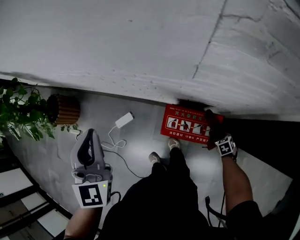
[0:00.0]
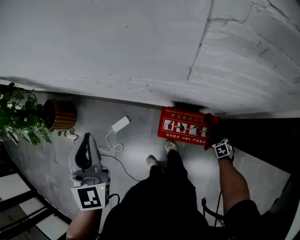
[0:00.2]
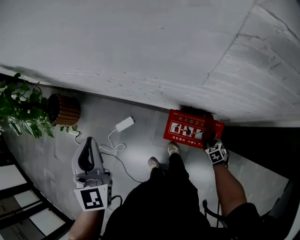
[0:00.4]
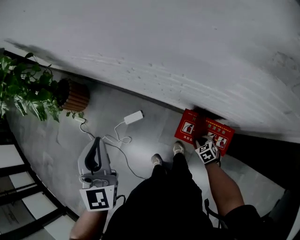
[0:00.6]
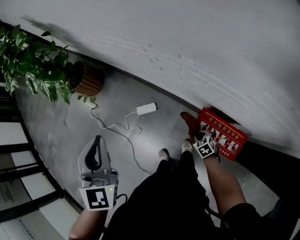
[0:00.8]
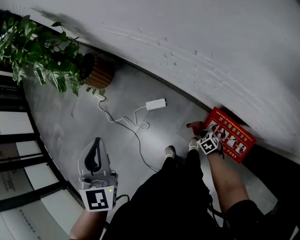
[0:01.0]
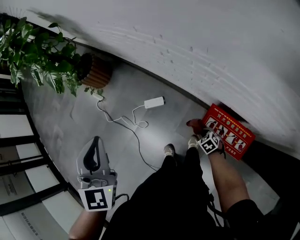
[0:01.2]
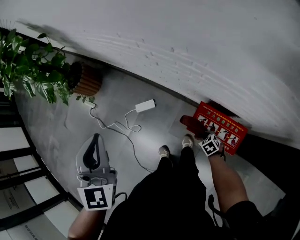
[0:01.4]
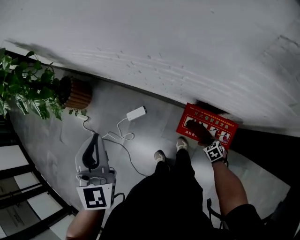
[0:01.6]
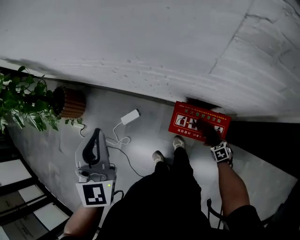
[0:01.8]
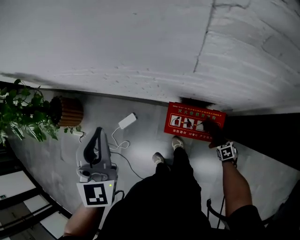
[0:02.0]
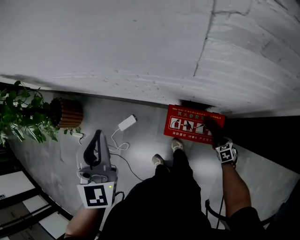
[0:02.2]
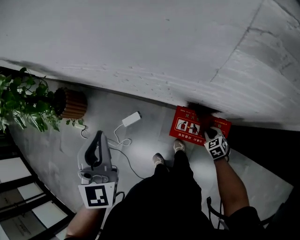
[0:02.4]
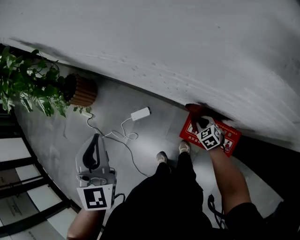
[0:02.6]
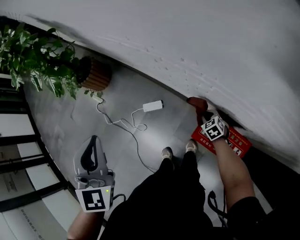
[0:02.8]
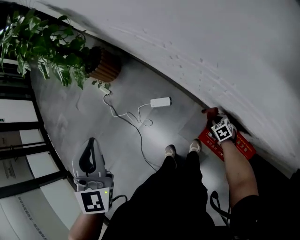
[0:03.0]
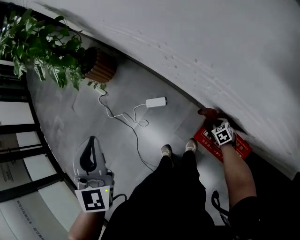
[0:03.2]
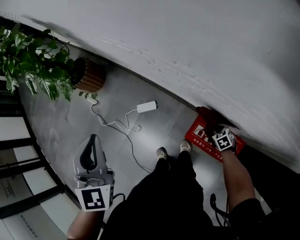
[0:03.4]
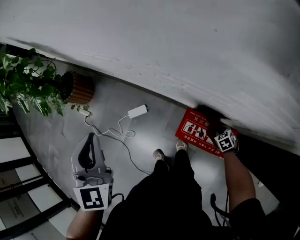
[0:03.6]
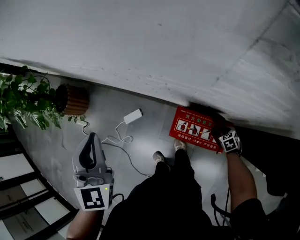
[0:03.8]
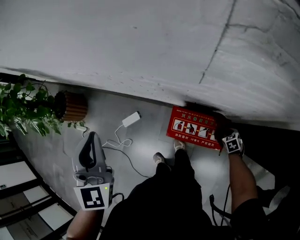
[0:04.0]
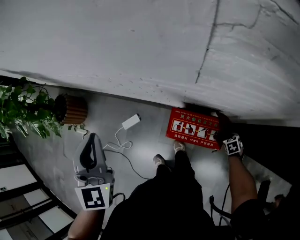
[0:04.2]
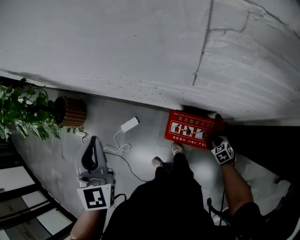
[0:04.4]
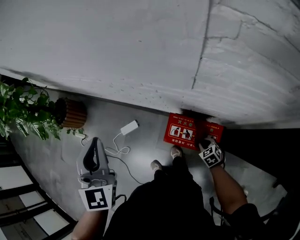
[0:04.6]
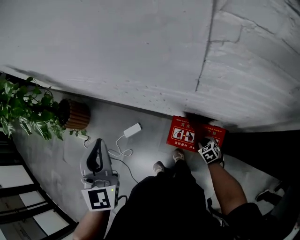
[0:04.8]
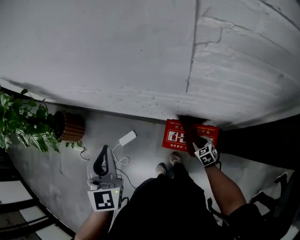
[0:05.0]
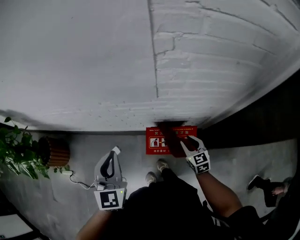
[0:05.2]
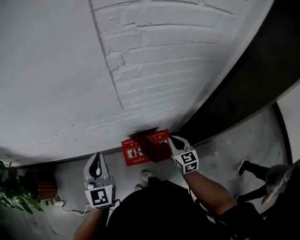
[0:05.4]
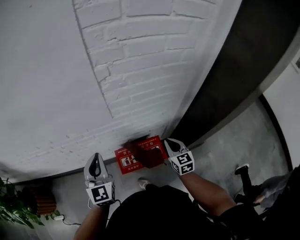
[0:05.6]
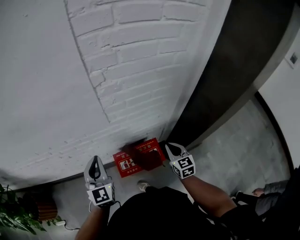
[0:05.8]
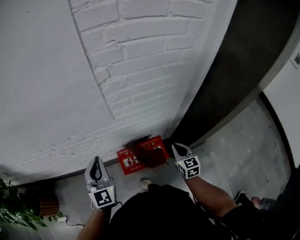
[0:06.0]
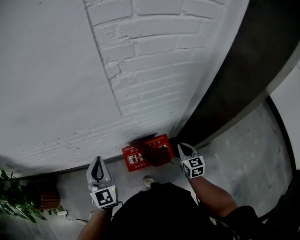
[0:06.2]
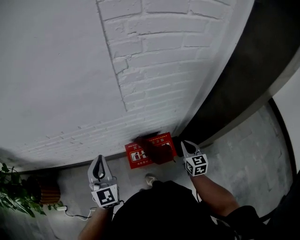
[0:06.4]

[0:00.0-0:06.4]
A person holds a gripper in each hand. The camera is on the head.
0:01.6 to 0:03.2: The right gripper moves approximately 10 cm upward and comes back. The left gripper changes place by some 10 cm, and rotates roughly 20 degrees.
0:03.2 to 0:04.8: The right gripper rotates some 20 degrees, while the left gripper shifts by approximately 15 cm, and changes its angle by some 30 degrees.
0:04.8 to 0:06.4: The right gripper travels upward by roughly 25 cm, and angles its fingers upward, by approximately 40 degrees; the left gripper changes its angle by approximately 30 degrees.

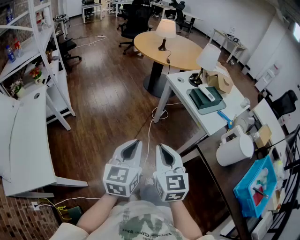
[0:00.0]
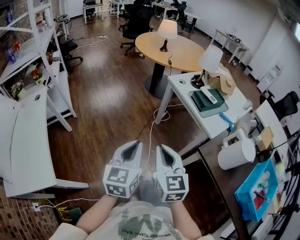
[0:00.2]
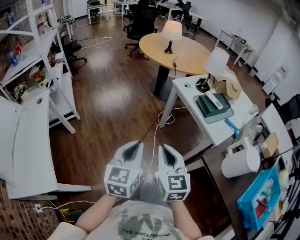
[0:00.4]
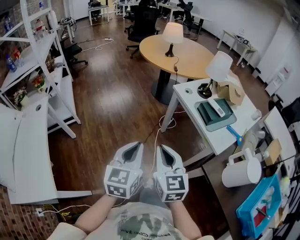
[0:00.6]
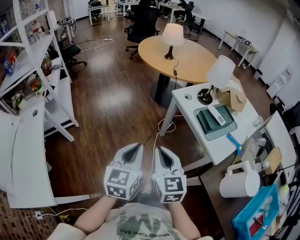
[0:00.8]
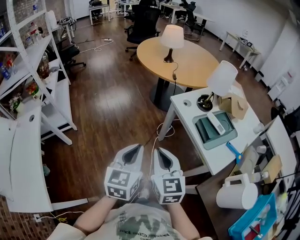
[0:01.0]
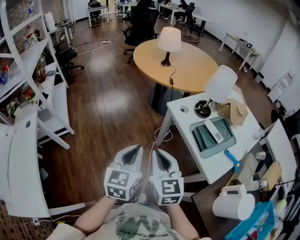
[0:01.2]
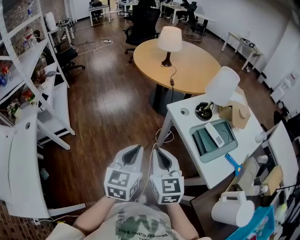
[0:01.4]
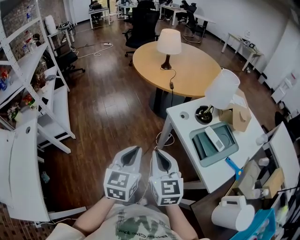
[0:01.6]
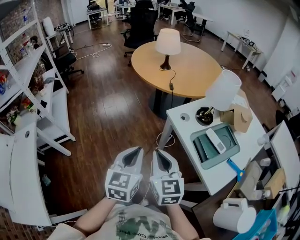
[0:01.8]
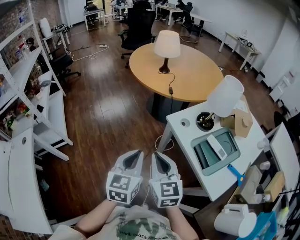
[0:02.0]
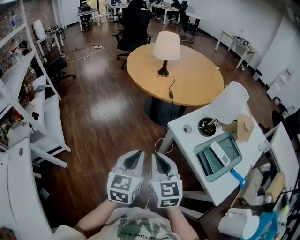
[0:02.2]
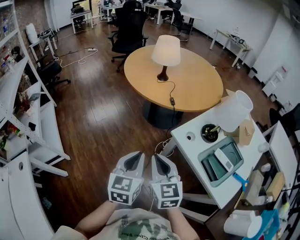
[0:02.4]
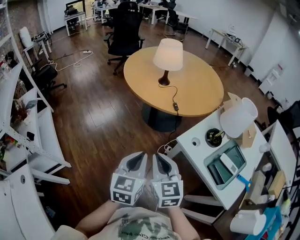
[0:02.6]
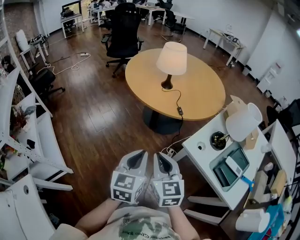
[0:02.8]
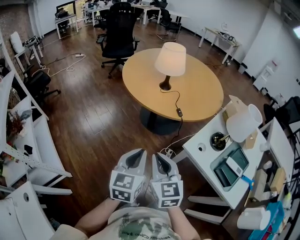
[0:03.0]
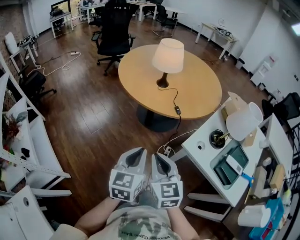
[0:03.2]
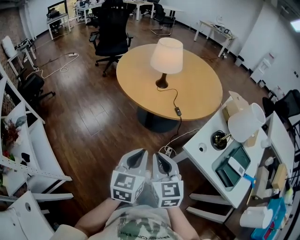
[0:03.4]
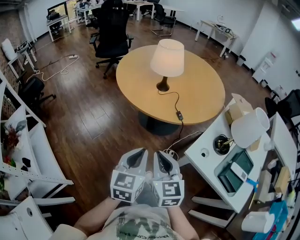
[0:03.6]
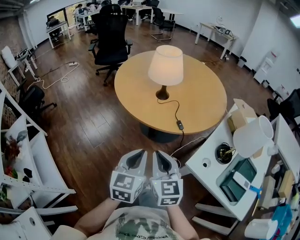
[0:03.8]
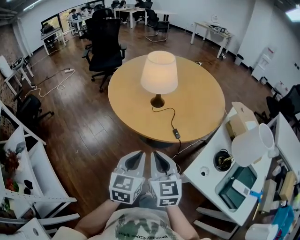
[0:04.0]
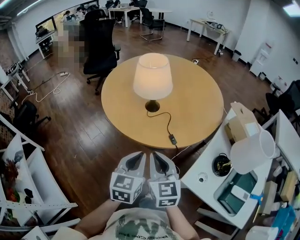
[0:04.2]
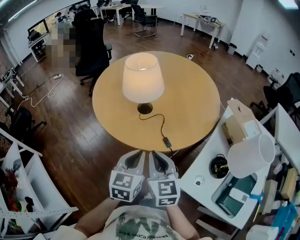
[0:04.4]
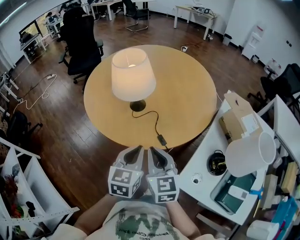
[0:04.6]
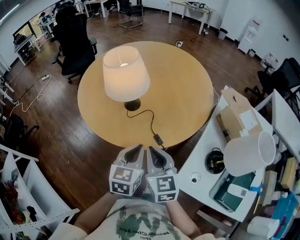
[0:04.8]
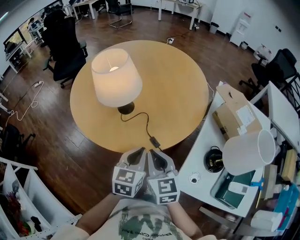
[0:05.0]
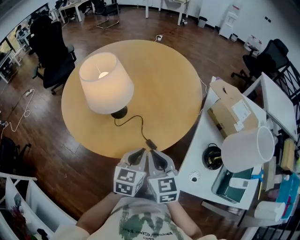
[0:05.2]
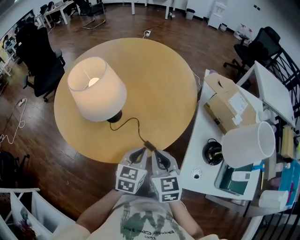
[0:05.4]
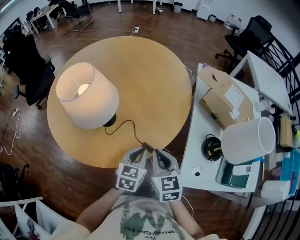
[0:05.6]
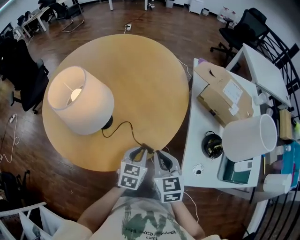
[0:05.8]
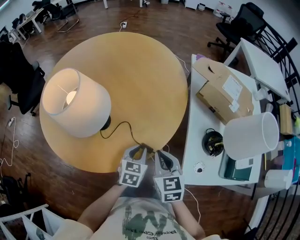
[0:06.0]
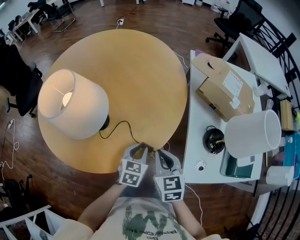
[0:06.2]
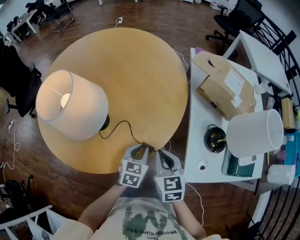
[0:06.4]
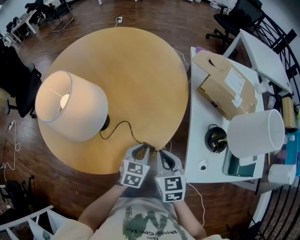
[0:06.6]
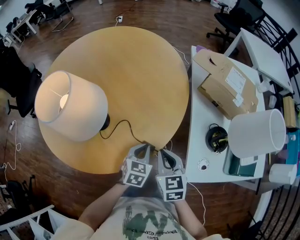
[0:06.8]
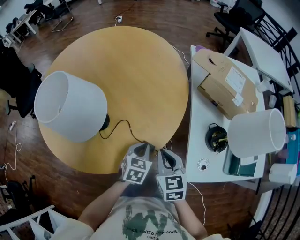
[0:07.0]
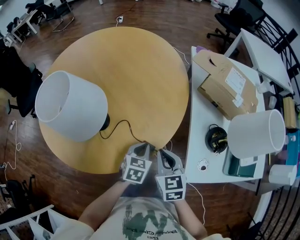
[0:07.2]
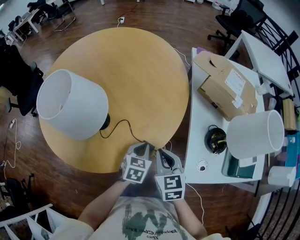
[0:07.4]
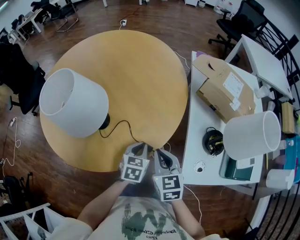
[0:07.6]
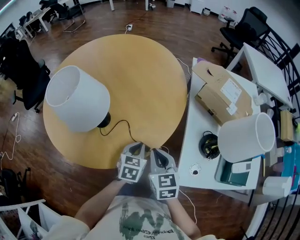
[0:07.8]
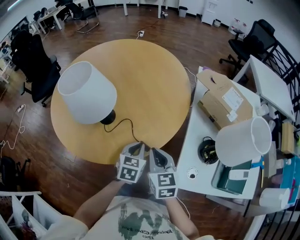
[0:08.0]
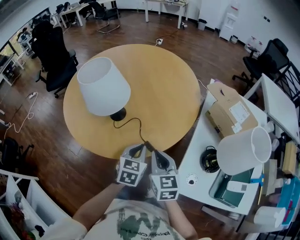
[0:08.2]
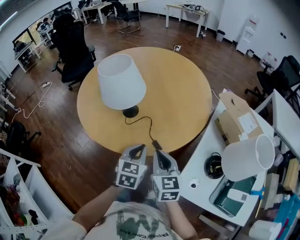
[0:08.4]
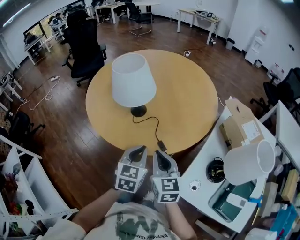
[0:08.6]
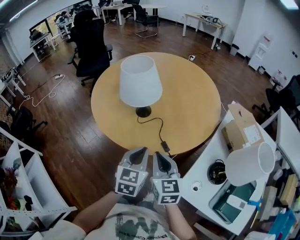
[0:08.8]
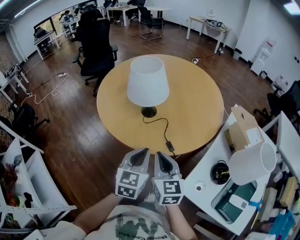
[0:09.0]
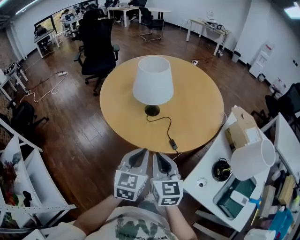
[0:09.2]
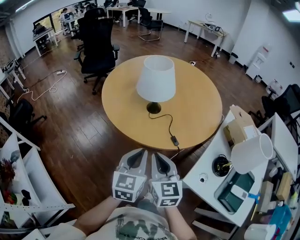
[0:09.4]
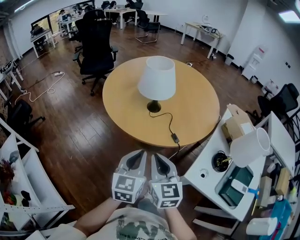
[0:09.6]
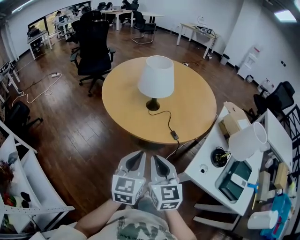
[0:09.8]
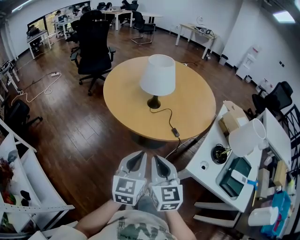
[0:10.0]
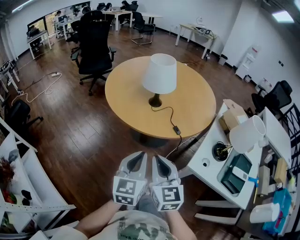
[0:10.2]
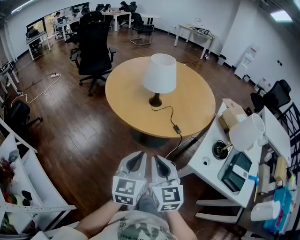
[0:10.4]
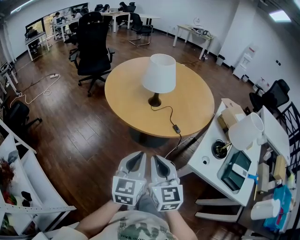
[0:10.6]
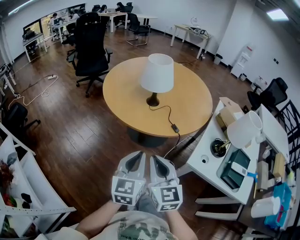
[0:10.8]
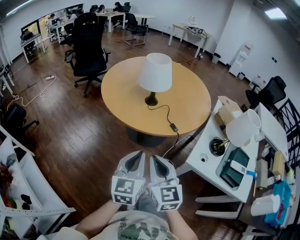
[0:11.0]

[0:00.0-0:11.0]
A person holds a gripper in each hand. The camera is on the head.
0:00.0 to 0:01.6: The two grippers go some 30 cm forward.
0:01.6 to 0:03.2: The two grippers go some 30 cm forward and to the left.
0:03.2 to 0:04.8: The grippers both shift forward by roughly 30 cm.
0:04.8 to 0:06.2: The right gripper travels downward by about 10 cm, and changes its angle by approximately 30 degrees, while the left gripper heads downward, covering approximately 15 cm, and swivels some 40 degrees.
0:06.2 to 0:07.8: The grippers move only a little.
0:07.8 to 0:09.4: The right gripper moves roughly 25 cm, and changes its angle by some 30 degrees. The left gripper shifts by about 30 cm, and changes its angle by roughly 40 degrees.
0:09.4 to 0:11.0: Both grippers move backward and to the left, about 15 cm.

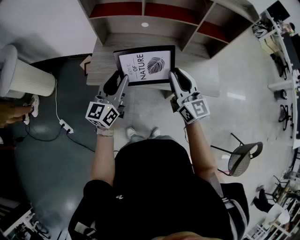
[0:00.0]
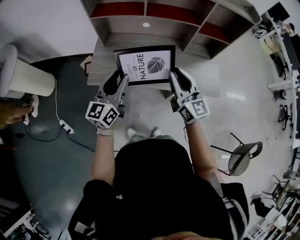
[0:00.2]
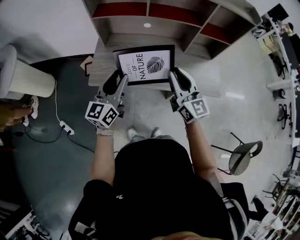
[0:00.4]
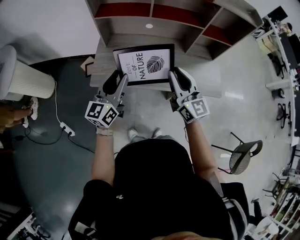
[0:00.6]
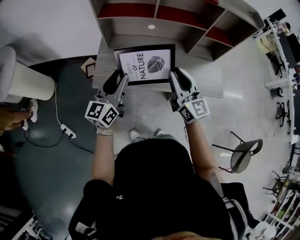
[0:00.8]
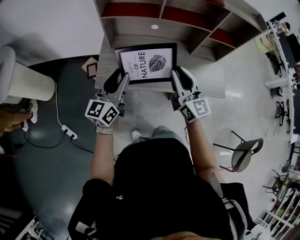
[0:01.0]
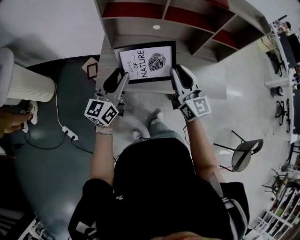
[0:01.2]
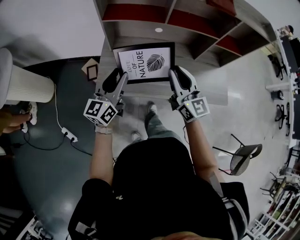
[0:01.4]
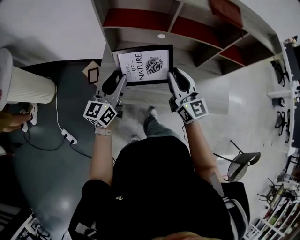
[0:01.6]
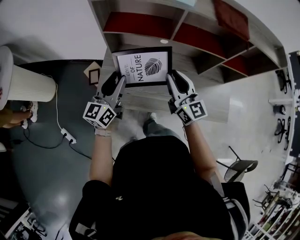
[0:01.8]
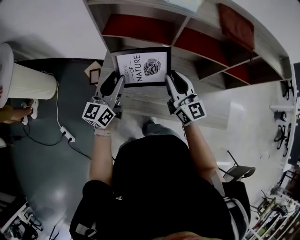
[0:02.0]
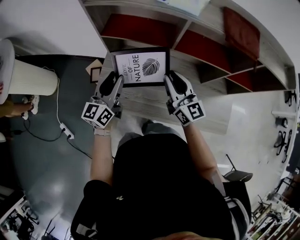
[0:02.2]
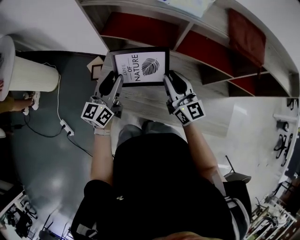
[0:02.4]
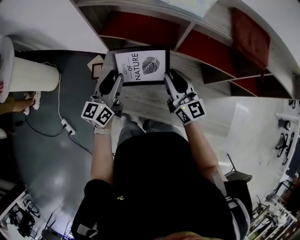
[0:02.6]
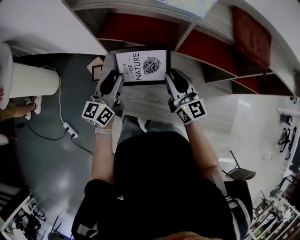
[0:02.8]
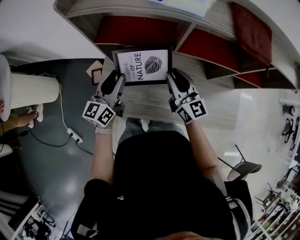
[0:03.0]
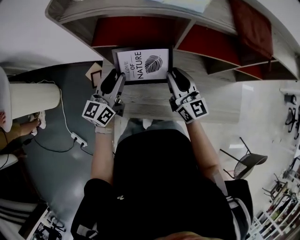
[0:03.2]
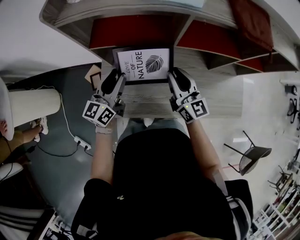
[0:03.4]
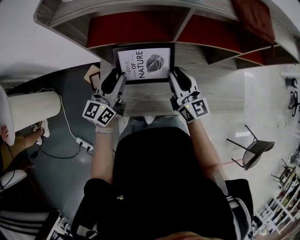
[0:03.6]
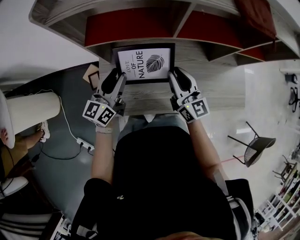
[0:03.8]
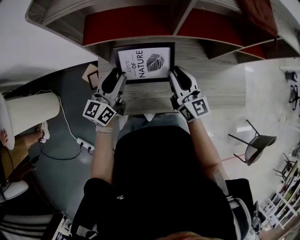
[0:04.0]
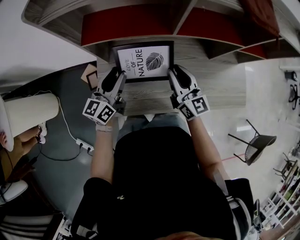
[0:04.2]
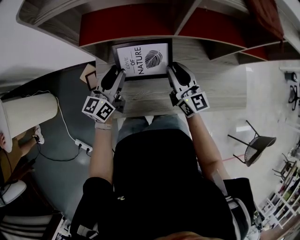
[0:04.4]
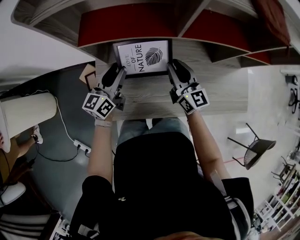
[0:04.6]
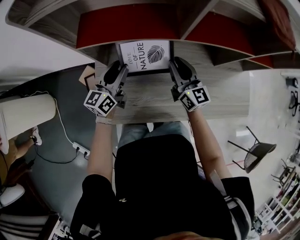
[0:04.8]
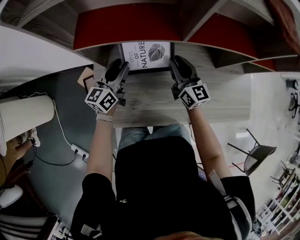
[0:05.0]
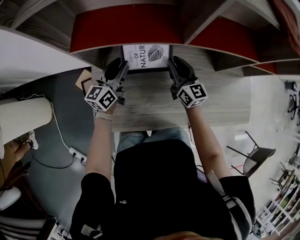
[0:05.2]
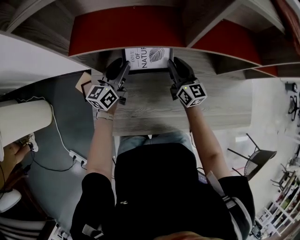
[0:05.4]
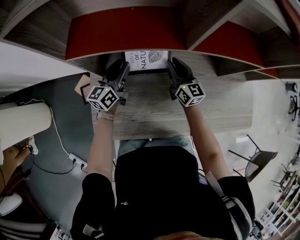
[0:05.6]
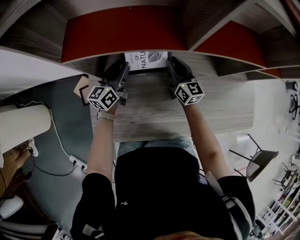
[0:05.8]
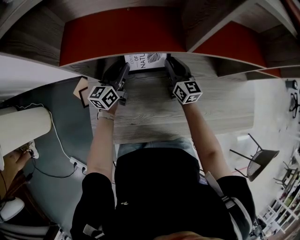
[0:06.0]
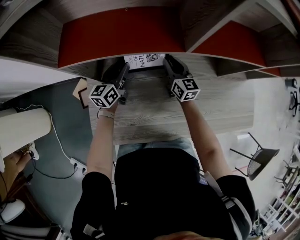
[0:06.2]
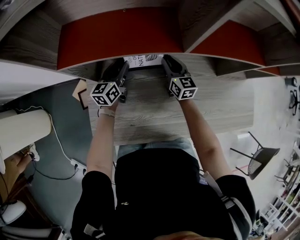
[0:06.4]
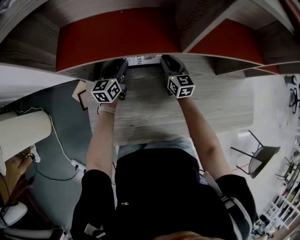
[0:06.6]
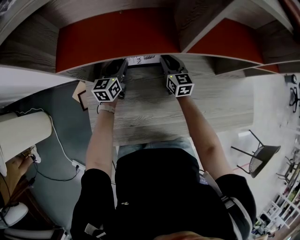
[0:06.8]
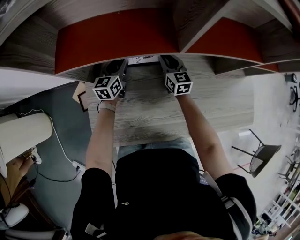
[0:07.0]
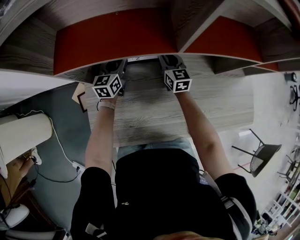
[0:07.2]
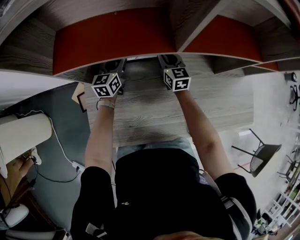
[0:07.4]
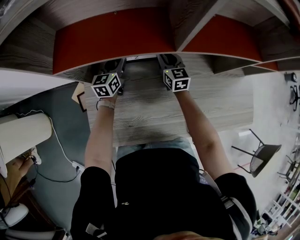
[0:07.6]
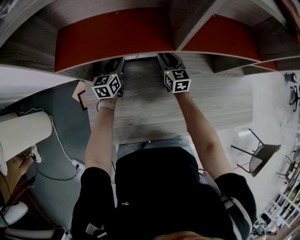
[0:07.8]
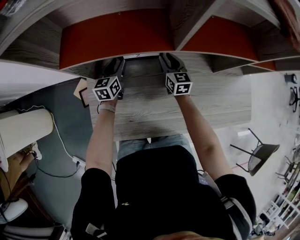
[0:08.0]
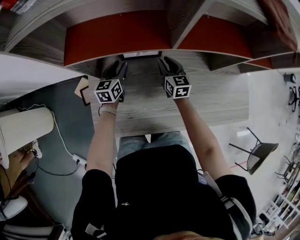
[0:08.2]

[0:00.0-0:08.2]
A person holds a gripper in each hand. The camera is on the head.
0:00.0 to 0:01.6: The two grippers go roughly 20 cm forward and to the left.
0:01.6 to 0:03.2: The left gripper moves forward, roughly 15 cm. Meanwhile the right gripper shifts approximately 15 cm forward and downward.
0:03.2 to 0:05.0: Both grippers move downward and forward, some 15 cm.
0:05.0 to 0:06.6: The two grippers go some 15 cm downward and forward.
0:06.6 to 0:08.2: There are only small adjustments of the grippers.
